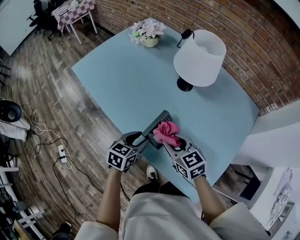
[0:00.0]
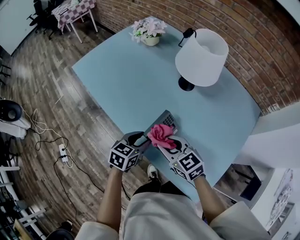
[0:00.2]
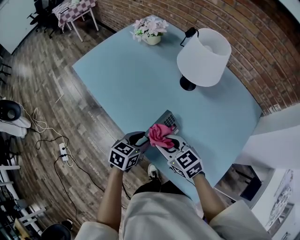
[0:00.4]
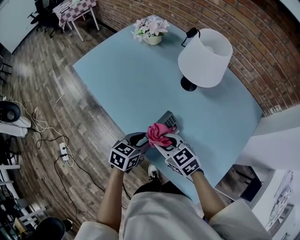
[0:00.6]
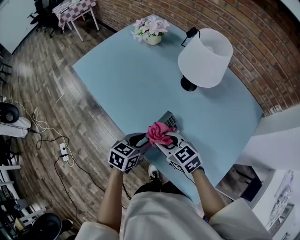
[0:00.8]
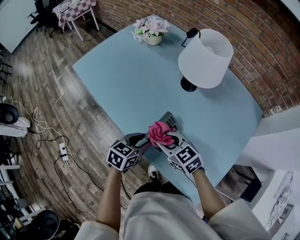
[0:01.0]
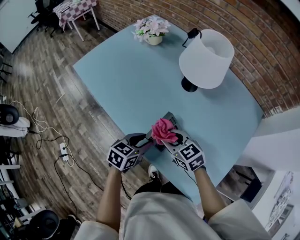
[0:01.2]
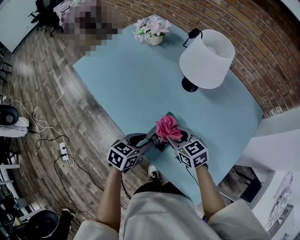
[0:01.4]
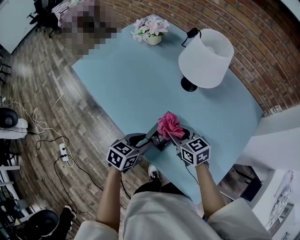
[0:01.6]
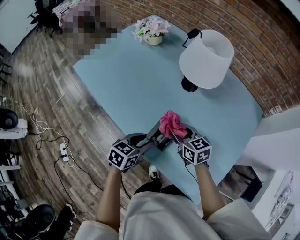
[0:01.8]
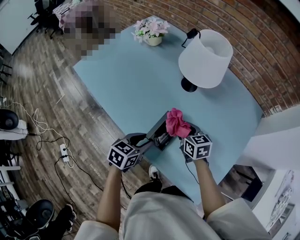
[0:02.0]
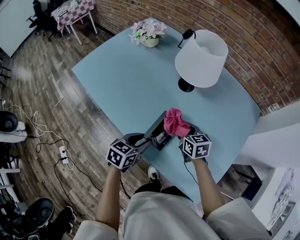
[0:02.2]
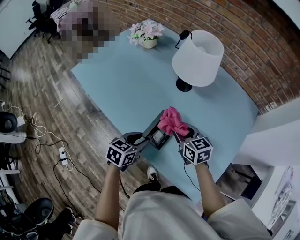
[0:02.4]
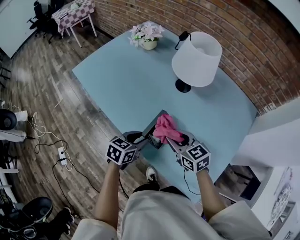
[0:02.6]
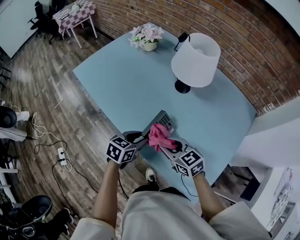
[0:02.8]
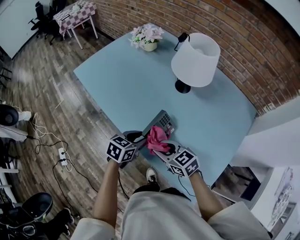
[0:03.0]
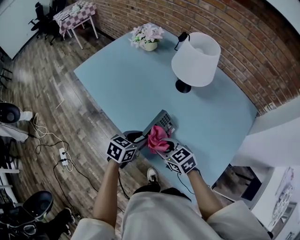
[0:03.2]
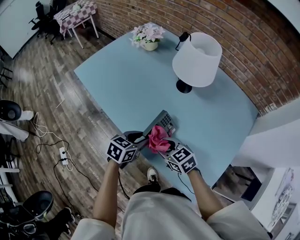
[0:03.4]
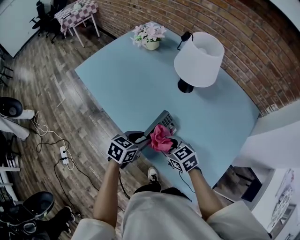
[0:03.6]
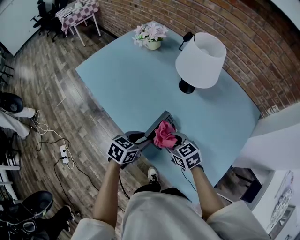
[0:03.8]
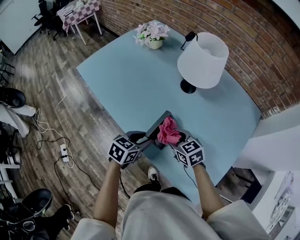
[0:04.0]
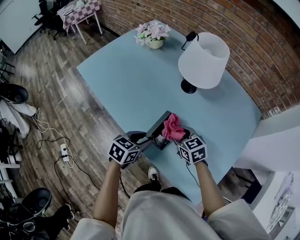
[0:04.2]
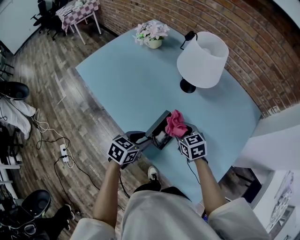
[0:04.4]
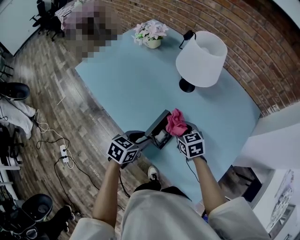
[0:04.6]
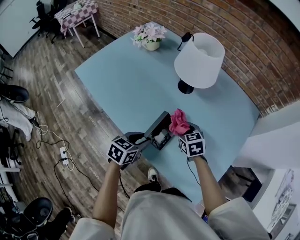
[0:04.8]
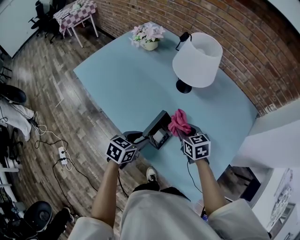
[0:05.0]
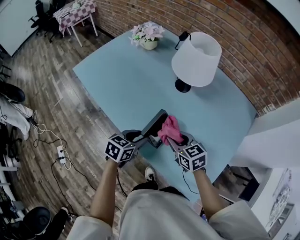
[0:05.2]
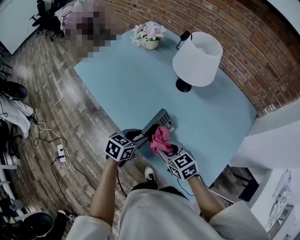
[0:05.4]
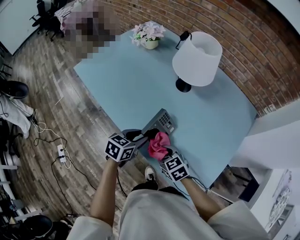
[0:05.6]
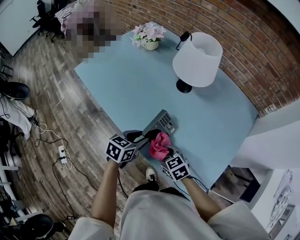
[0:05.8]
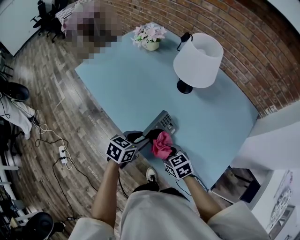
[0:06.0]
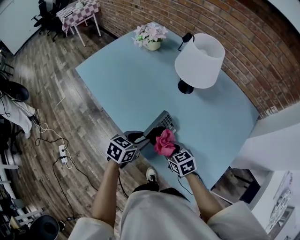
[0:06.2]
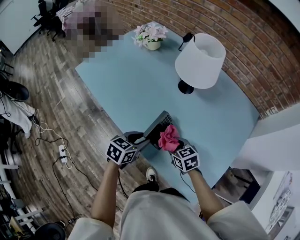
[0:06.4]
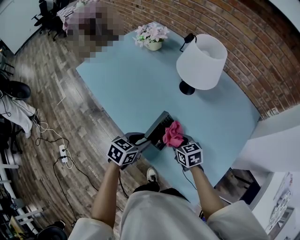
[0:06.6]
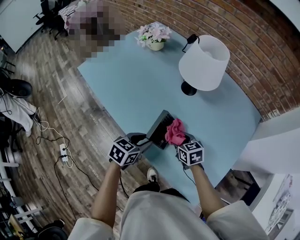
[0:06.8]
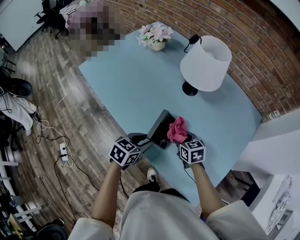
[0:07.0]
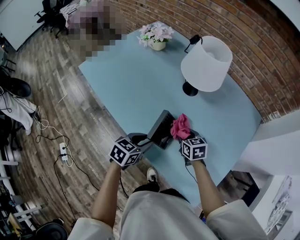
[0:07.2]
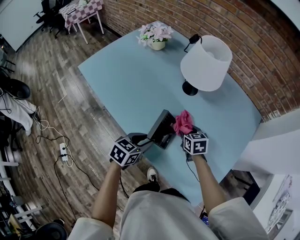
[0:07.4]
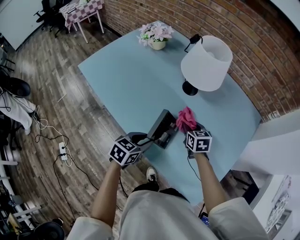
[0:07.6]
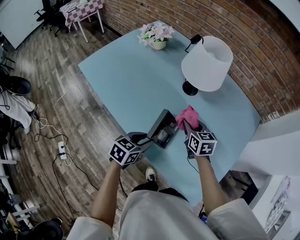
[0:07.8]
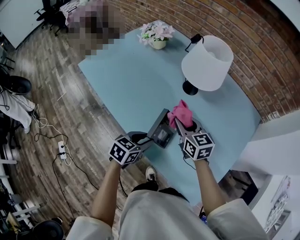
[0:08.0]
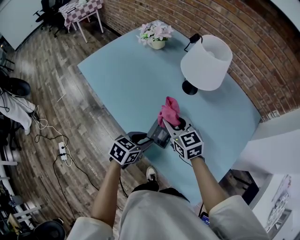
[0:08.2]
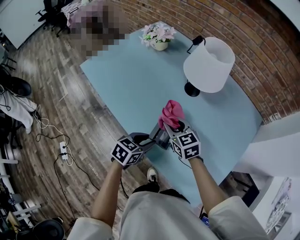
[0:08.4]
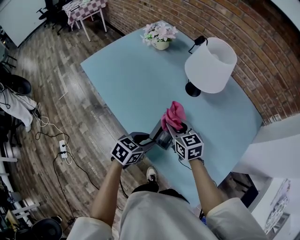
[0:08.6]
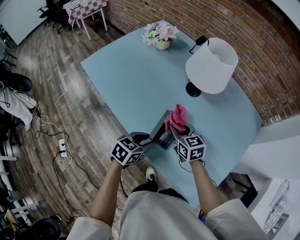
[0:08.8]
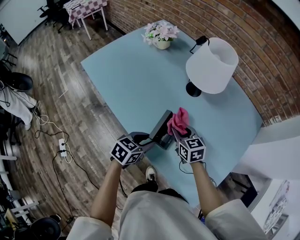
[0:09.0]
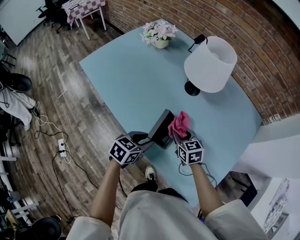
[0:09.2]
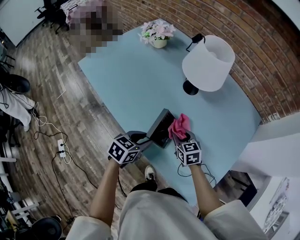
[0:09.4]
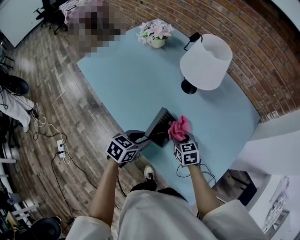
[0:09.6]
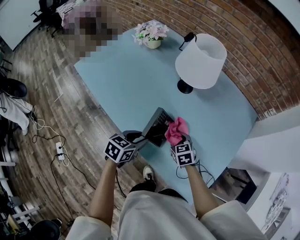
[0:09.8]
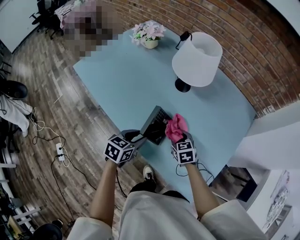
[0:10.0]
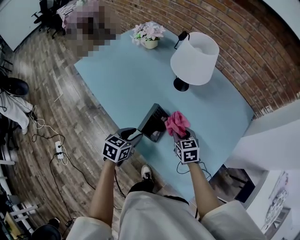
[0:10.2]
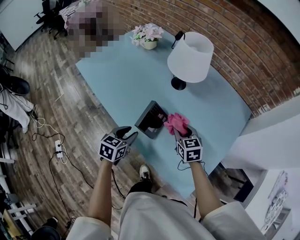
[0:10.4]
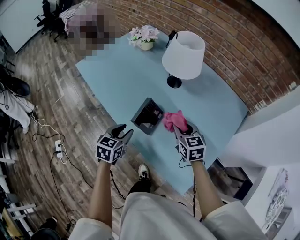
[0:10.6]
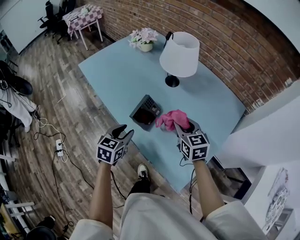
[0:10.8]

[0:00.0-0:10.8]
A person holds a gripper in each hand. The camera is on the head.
0:00.0 to 0:01.6: The right gripper goes about 5 cm forward.
0:01.6 to 0:03.0: The right gripper goes some 10 cm backward.
0:03.0 to 0:04.6: The right gripper shifts approximately 15 cm forward and to the right, and changes its angle by roughly 30 degrees.
0:04.6 to 0:06.2: The right gripper shifts some 10 cm backward.
0:06.2 to 0:07.8: The right gripper goes roughly 15 cm forward and upward, and changes its angle by approximately 20 degrees.
0:09.2 to 0:10.8: The right gripper shifts about 20 cm upward, to the right and backward. Meanwhile the left gripper travels backward and upward by approximately 10 cm, and swivels some 30 degrees.

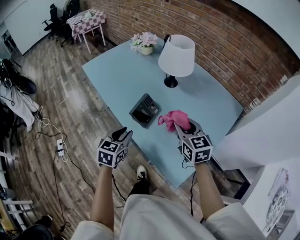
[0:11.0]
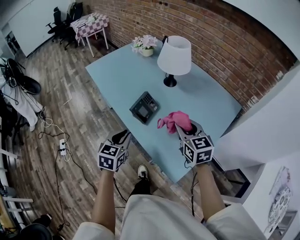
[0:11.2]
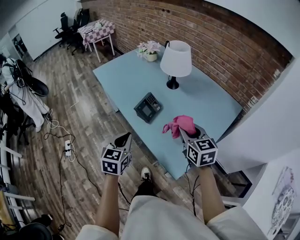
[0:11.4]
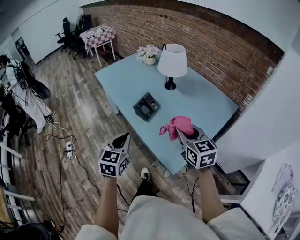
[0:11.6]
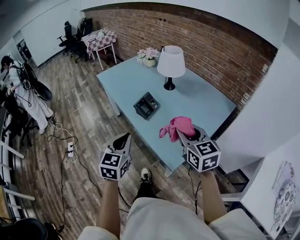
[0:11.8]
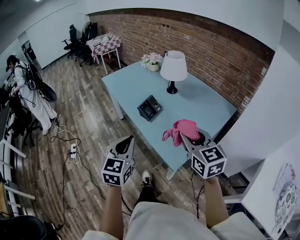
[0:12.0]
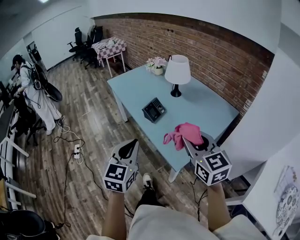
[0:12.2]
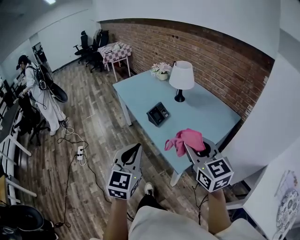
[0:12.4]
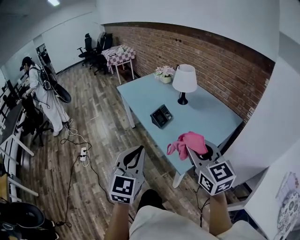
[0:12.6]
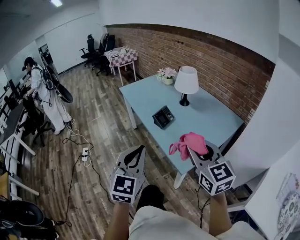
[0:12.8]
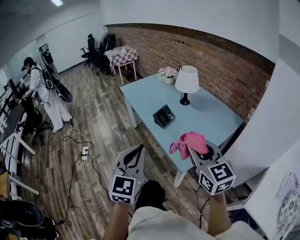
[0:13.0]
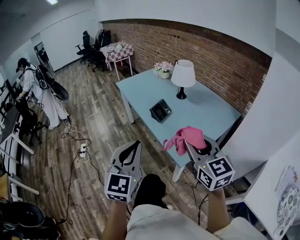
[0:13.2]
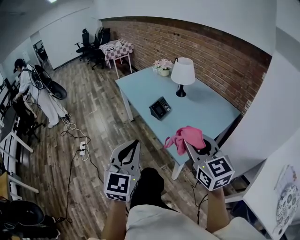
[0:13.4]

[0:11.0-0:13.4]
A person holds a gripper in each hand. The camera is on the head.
0:11.0 to 0:12.2: Both grippers travel together backward and upward, approximately 35 cm. The left gripper swivels about 30 degrees, and closes.
0:12.2 to 0:13.4: The right gripper heads backward, covering about 10 cm; the left gripper is displaced backward and upward by about 10 cm.

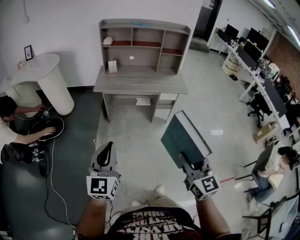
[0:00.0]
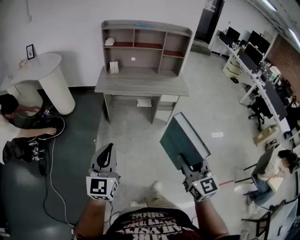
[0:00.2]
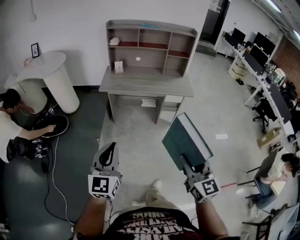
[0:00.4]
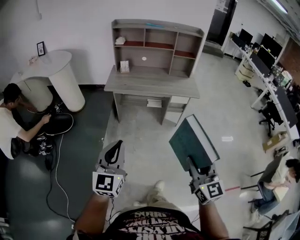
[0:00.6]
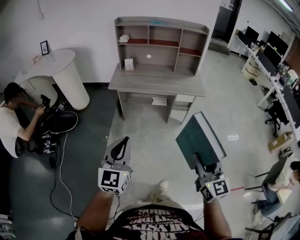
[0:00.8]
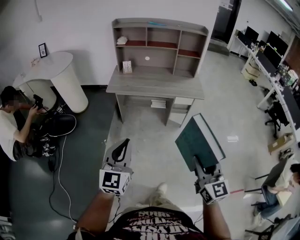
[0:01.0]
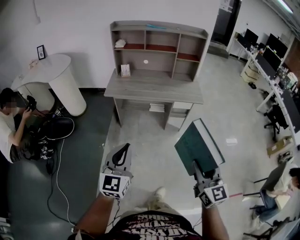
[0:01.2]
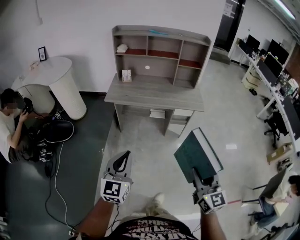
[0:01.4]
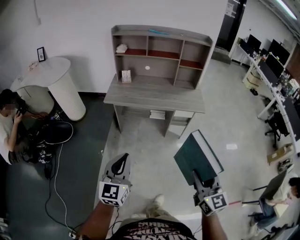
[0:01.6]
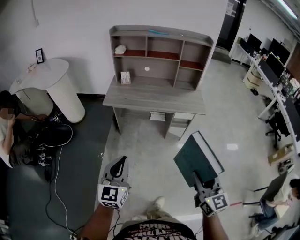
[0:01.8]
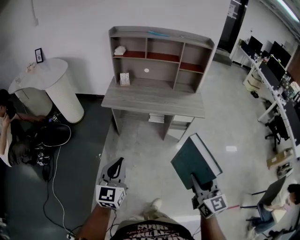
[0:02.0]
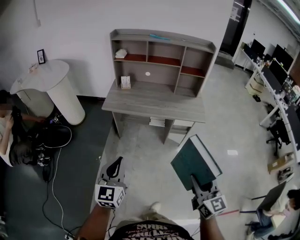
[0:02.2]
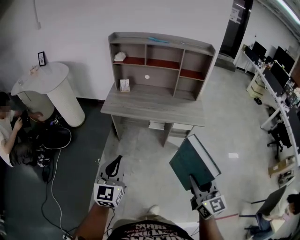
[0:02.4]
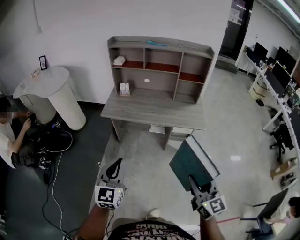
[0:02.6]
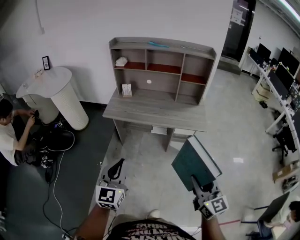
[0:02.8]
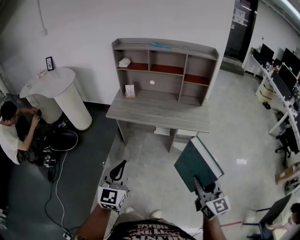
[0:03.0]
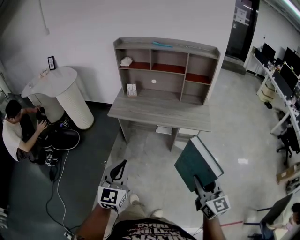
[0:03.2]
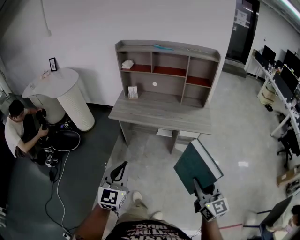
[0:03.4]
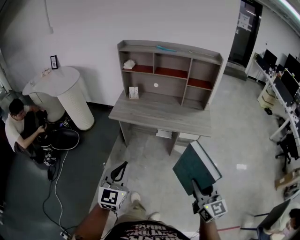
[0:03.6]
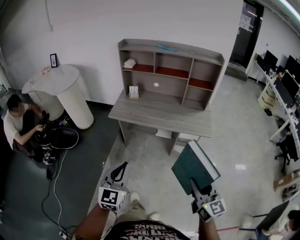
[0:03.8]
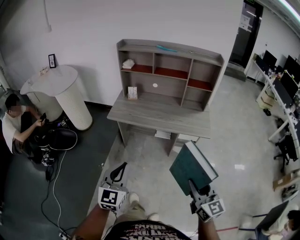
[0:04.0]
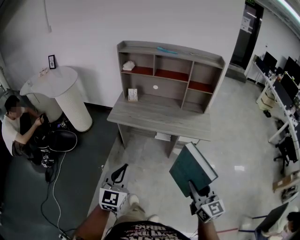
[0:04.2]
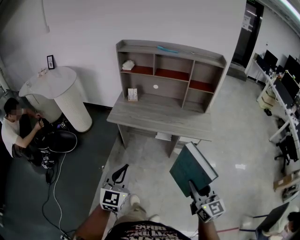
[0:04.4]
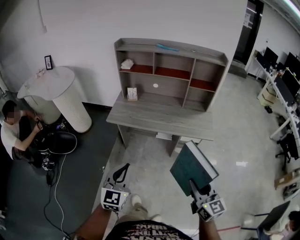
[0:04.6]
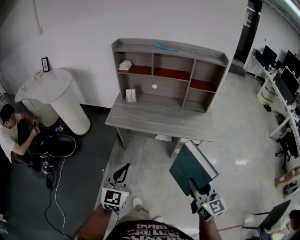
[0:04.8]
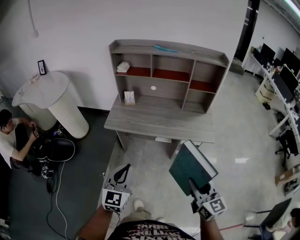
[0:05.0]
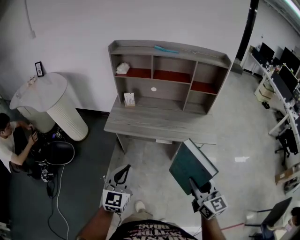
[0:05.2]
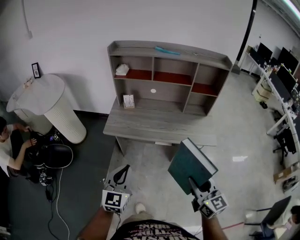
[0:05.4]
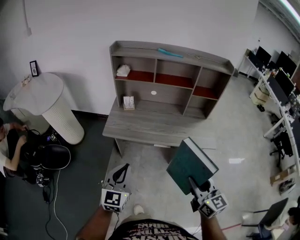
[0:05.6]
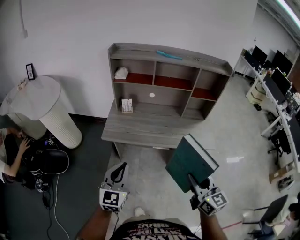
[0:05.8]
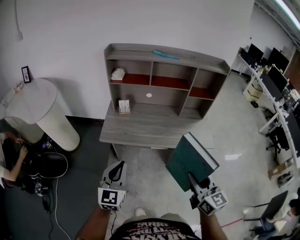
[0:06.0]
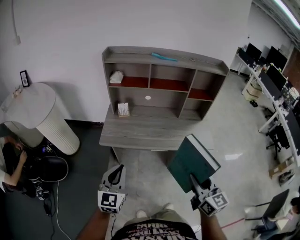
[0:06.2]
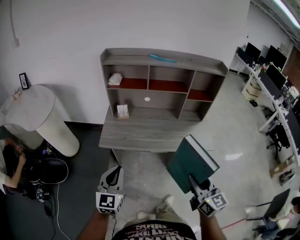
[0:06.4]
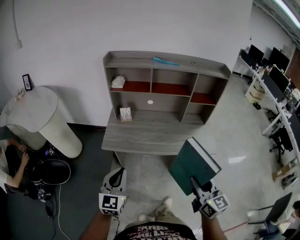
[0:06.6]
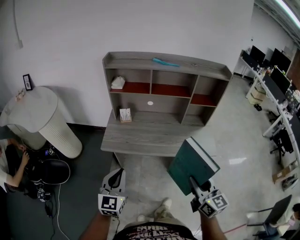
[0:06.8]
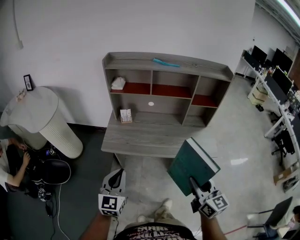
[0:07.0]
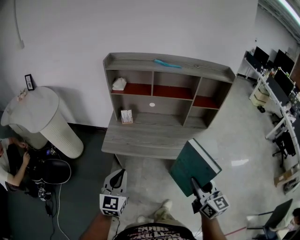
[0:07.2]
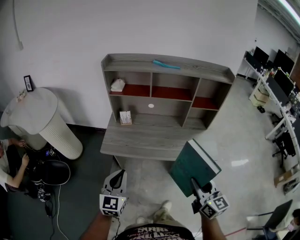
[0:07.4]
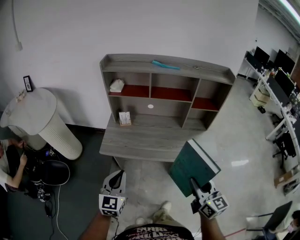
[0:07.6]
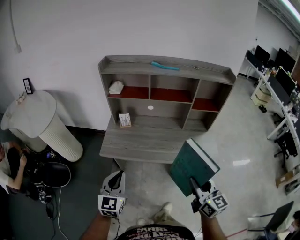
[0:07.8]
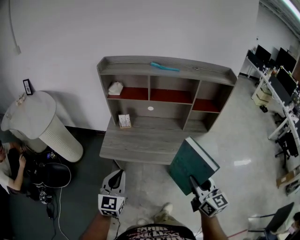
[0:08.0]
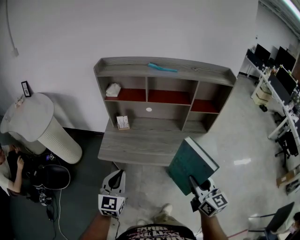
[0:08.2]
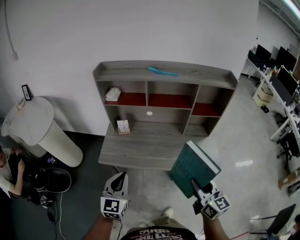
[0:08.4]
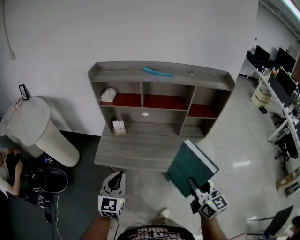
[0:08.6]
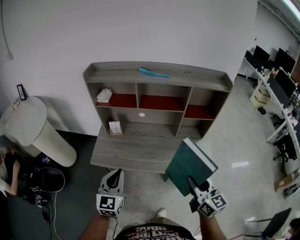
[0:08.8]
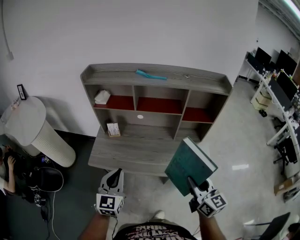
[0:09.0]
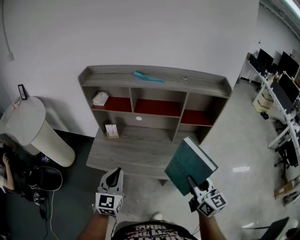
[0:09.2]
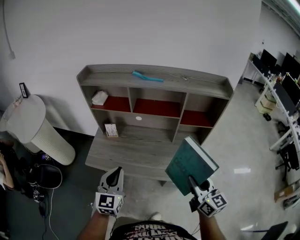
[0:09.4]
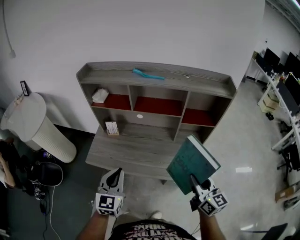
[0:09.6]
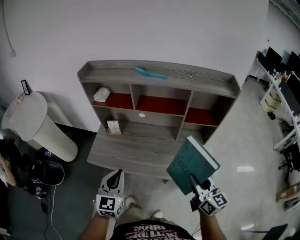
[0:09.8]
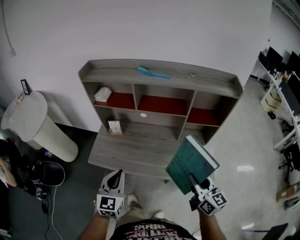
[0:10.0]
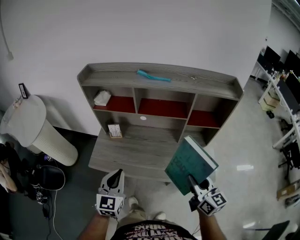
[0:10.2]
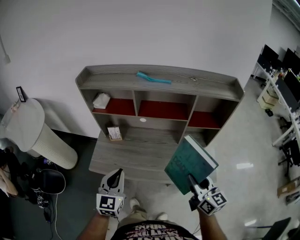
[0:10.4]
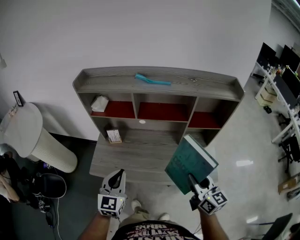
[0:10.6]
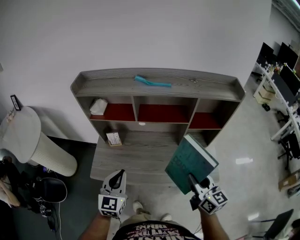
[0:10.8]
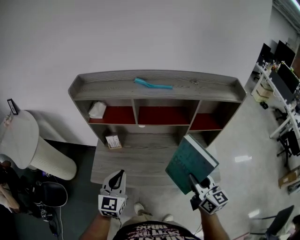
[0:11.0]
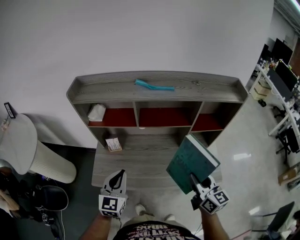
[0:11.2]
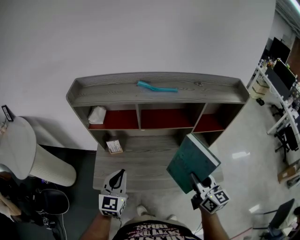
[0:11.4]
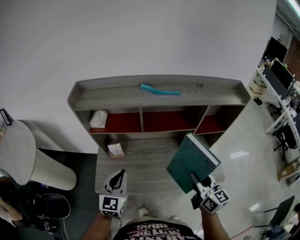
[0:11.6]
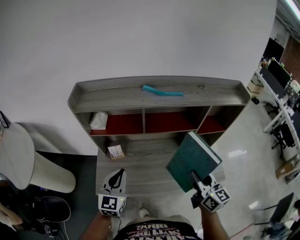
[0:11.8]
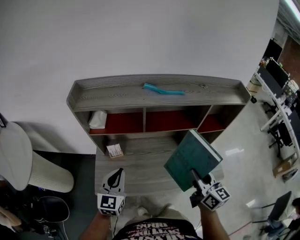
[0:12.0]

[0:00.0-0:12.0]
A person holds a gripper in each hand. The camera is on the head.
0:00.0 to 0:01.6: Both grippers travel together forward and to the right, roughly 15 cm.
0:01.6 to 0:03.0: The two grippers go about 15 cm forward and to the right.
0:03.0 to 0:04.4: The right gripper goes some 5 cm forward; the left gripper changes place by approximately 5 cm.
0:04.4 to 0:06.0: The grippers both shift forward and to the left by roughly 25 cm.
0:06.0 to 0:07.6: The left gripper moves forward, approximately 5 cm. Meanwhile the right gripper moves forward and to the right, some 10 cm.
0:07.6 to 0:09.0: Both grippers move forward and to the right, approximately 15 cm.
0:09.0 to 0:10.4: The grippers both shift forward by some 10 cm.
0:10.4 to 0:12.0: The right gripper heads to the left and forward, covering some 15 cm; the left gripper shifts about 15 cm forward and to the left.
